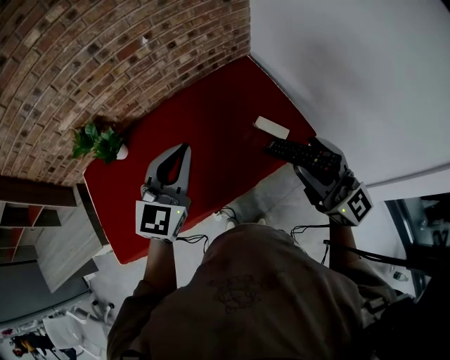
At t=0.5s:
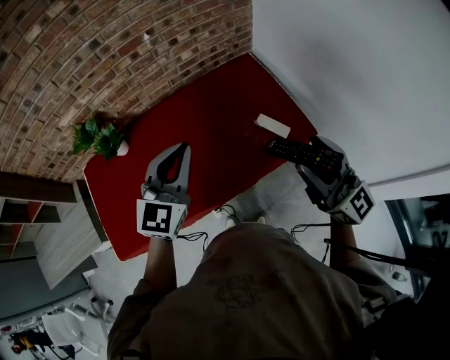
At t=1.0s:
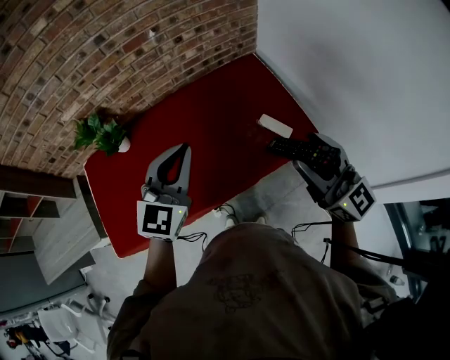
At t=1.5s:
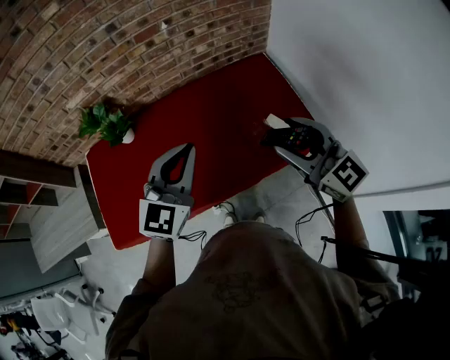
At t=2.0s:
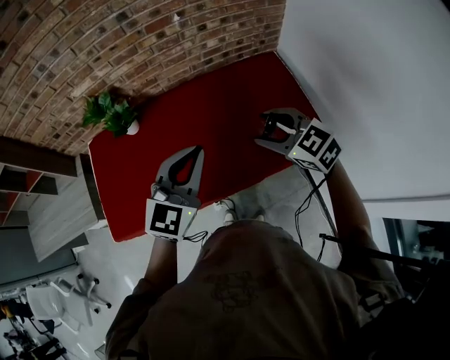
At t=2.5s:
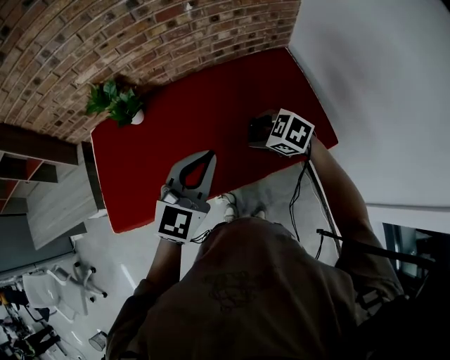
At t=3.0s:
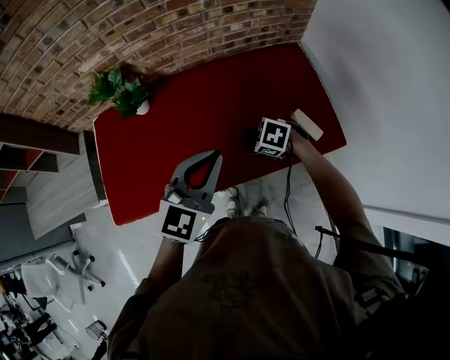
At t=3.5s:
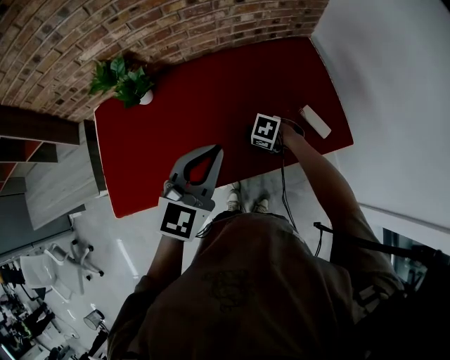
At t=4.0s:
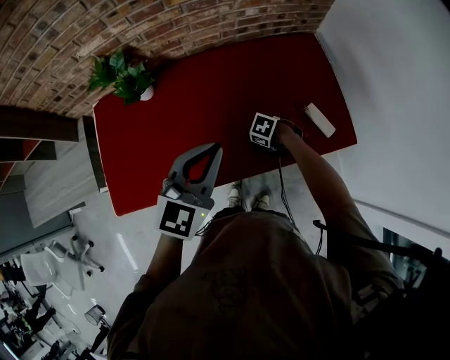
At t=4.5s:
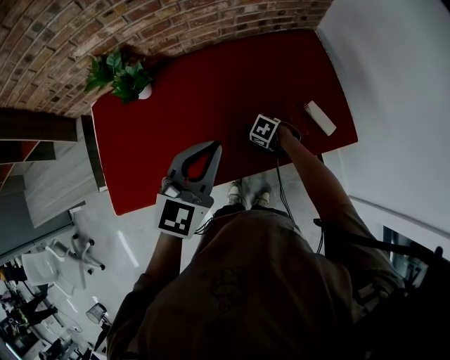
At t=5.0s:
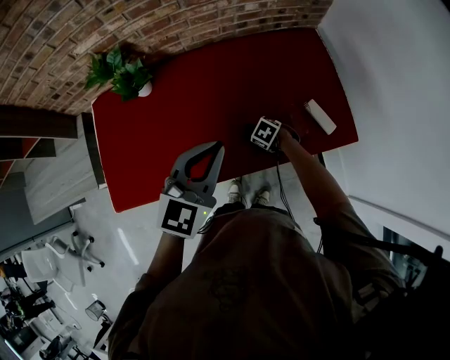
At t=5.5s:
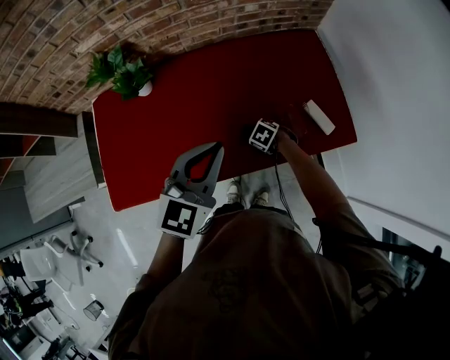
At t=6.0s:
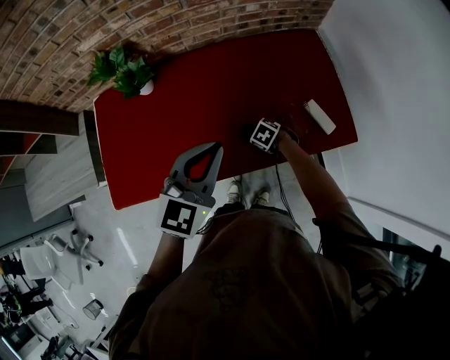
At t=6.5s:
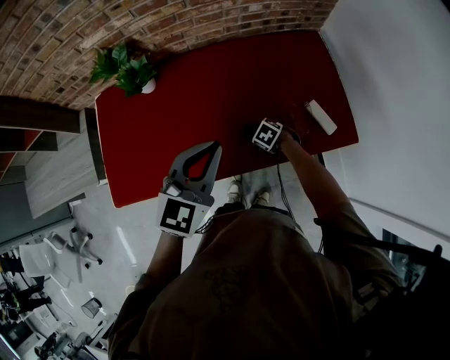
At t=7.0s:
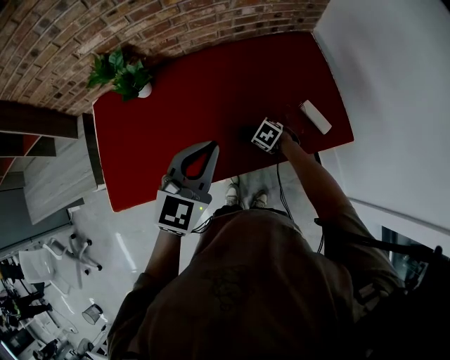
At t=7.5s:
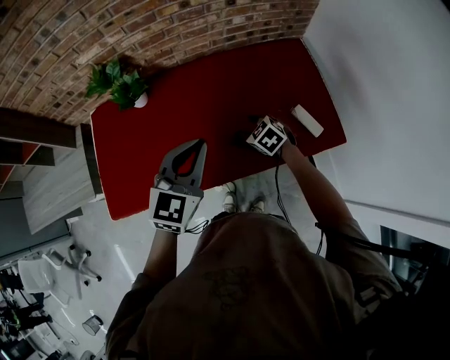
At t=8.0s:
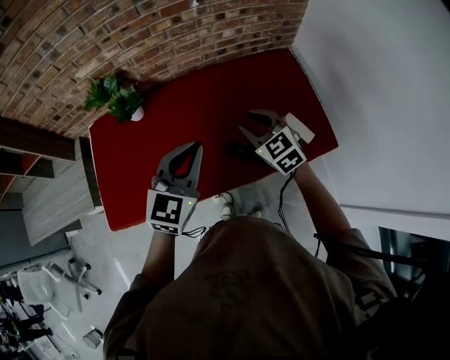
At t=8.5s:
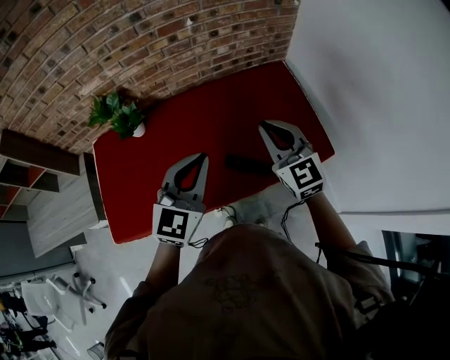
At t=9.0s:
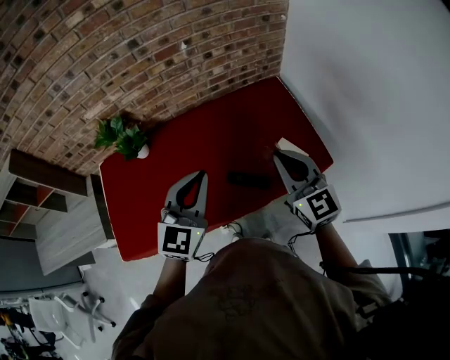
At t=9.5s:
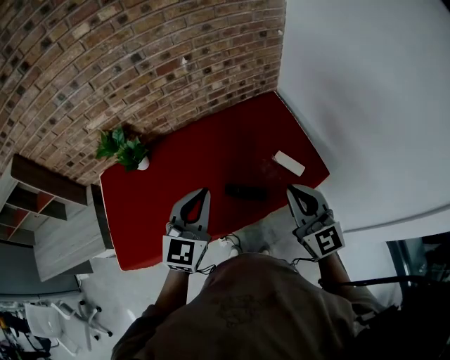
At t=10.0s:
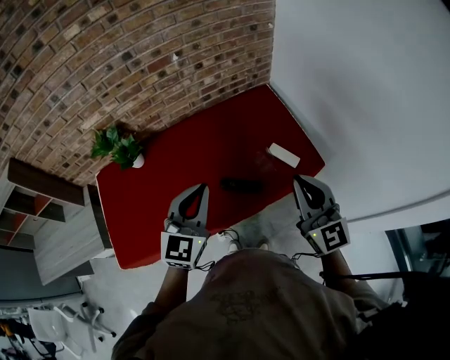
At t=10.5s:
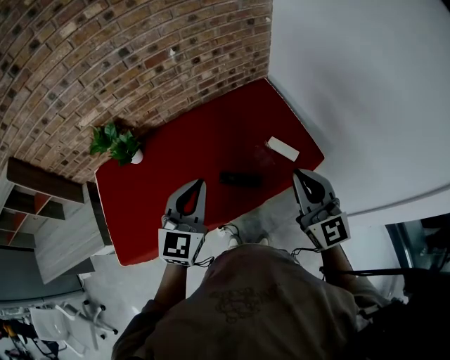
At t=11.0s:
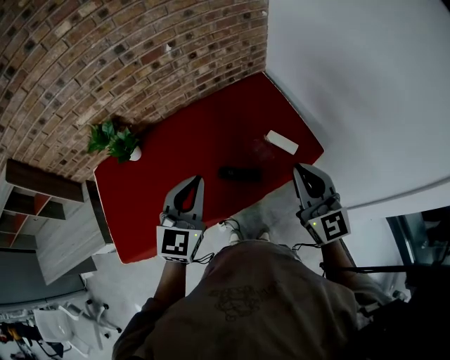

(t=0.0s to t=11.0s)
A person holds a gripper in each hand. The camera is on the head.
t=0.0s - t=2.0s: The right gripper shifts approximately 20 cm forward, downward and to the left, and points its fingers about 50 degrees further downward.
t=2.0s - t=3.5s: The left gripper changes place by approximately 5 cm. Meanwhile the right gripper travels downward by about 30 cm, and tilts its fingers roughly 40 degrees downward.
t=3.5s - t=5.5s: The right gripper goes about 10 cm downward.
t=5.5s - t=7.5s: The right gripper shifts approximately 15 cm upward, and turns by roughly 30 degrees.
t=7.5s - t=9.0s: The left gripper moves upward, about 5 cm, while the right gripper heads upward, covering roughly 30 cm, tips its fingers upward by some 50 degrees, and closes its fingers.
t=9.0s - t=11.0s: The right gripper travels backward and to the right by approximately 10 cm.

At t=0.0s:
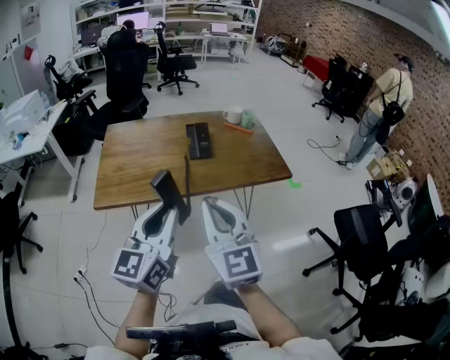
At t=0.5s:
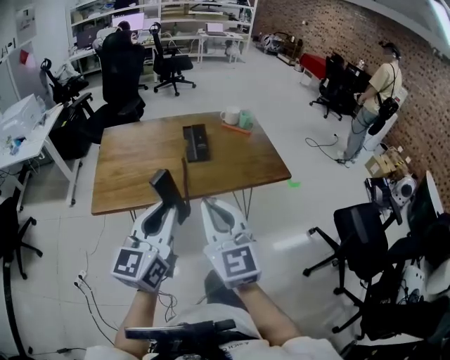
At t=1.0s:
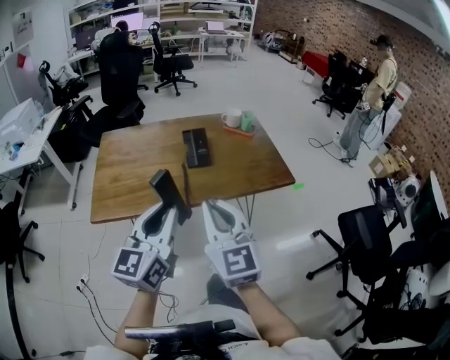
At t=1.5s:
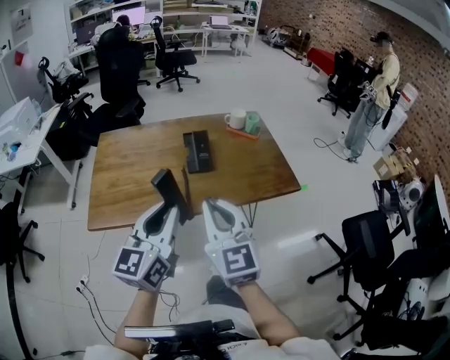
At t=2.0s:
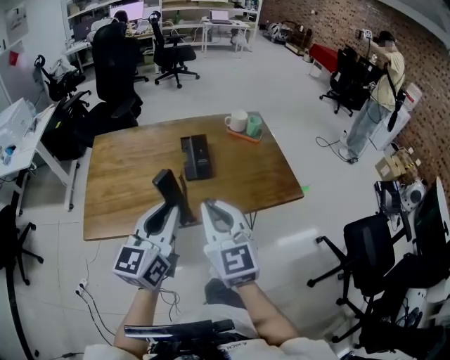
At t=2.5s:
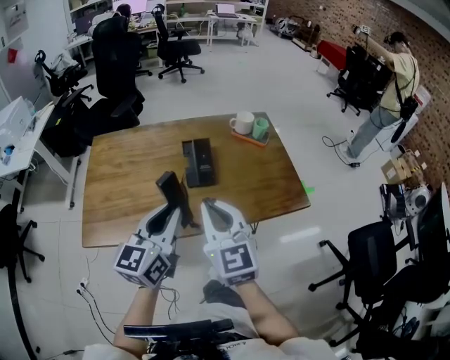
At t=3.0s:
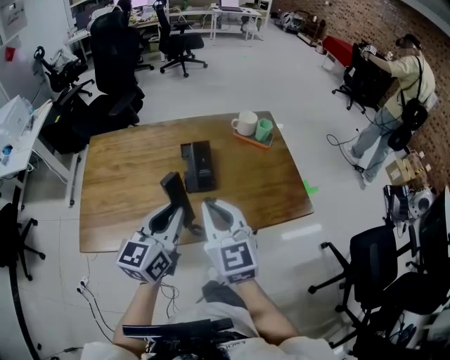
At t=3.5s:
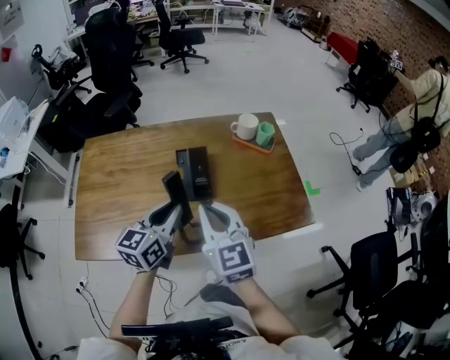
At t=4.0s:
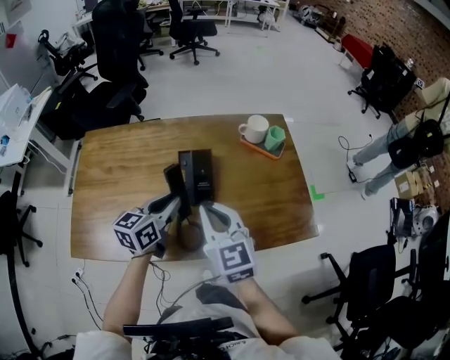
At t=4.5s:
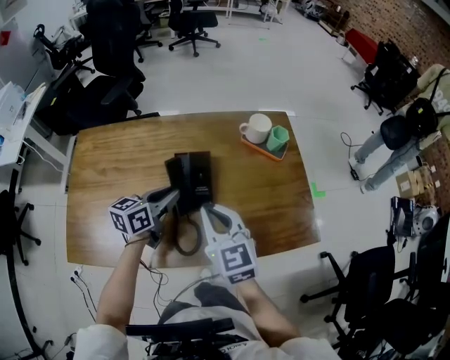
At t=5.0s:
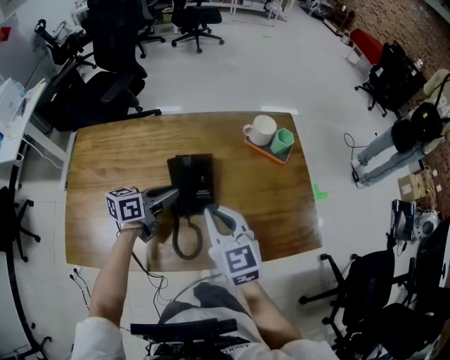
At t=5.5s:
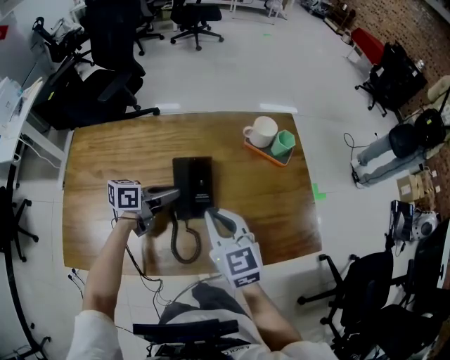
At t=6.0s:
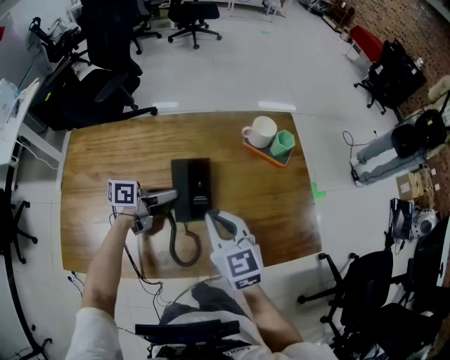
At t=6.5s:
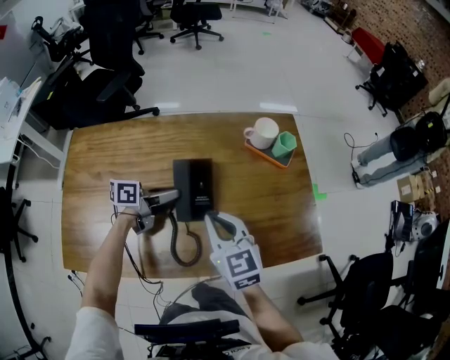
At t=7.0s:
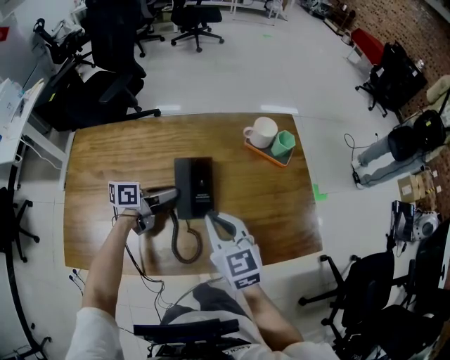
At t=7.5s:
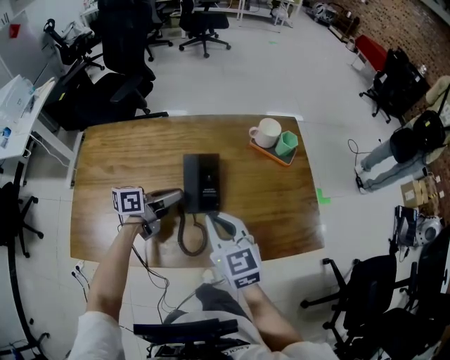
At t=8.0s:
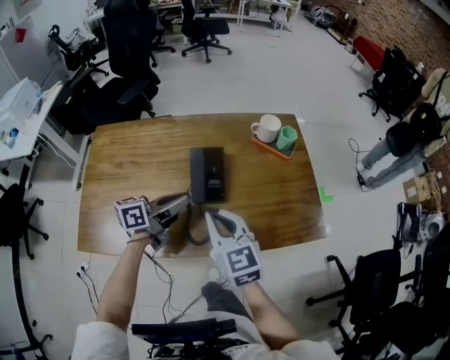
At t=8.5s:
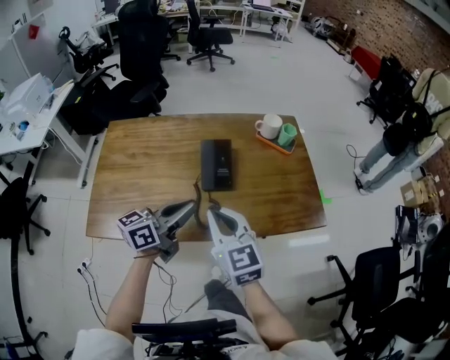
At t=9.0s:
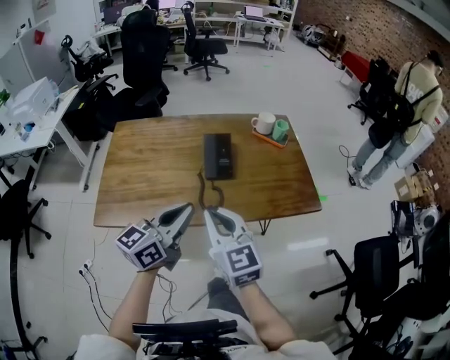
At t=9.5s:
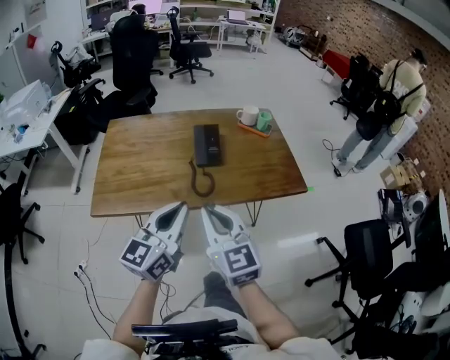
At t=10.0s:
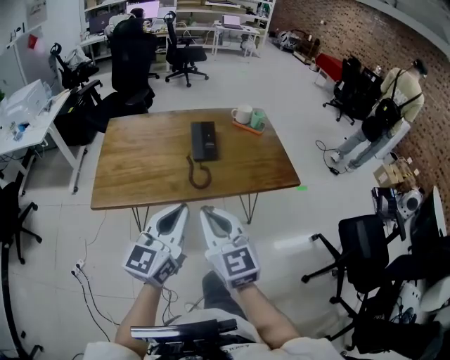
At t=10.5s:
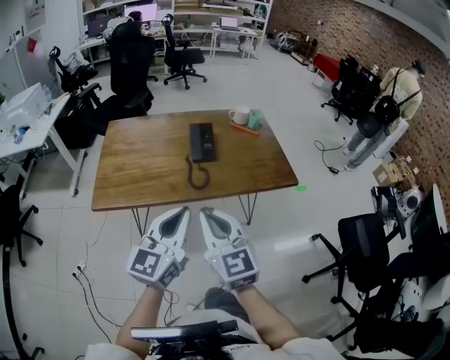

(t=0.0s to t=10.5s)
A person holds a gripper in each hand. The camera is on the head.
t=0.0s - t=2.0s: Both grippers travel together forward, some 20 cm.
t=2.0s - t=4.0s: Both grippers travel together forward and downward, about 25 cm. The left gripper changes its angle by some 20 degrees.
t=4.0s - t=6.5s: The right gripper moves downward and forward, some 10 cm, while the left gripper travels forward and downward by approximately 15 cm, and swivels roughly 40 degrees.
t=6.5s - t=8.5s: The left gripper shifts approximately 25 cm backward and upward, and turns by approximately 30 degrees. The right gripper shifts approximately 15 cm backward and upward.
t=8.5s - t=10.5s: Both grippers travel together backward, approximately 25 cm. The left gripper rotates roughly 40 degrees.

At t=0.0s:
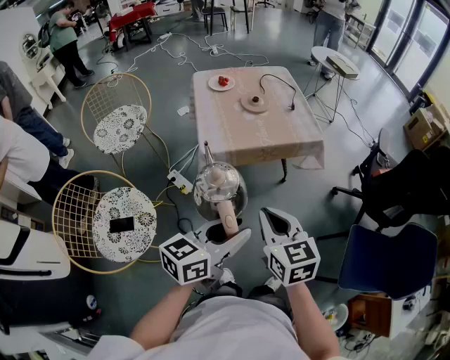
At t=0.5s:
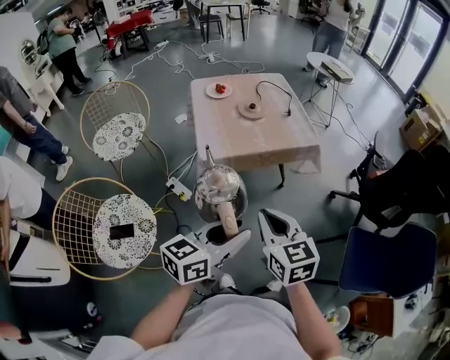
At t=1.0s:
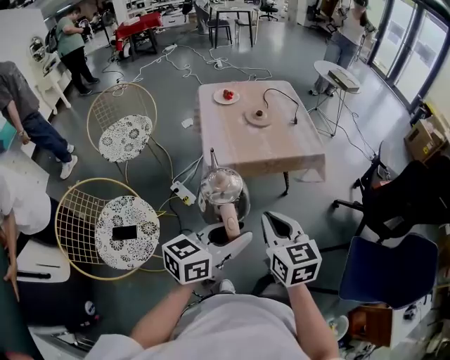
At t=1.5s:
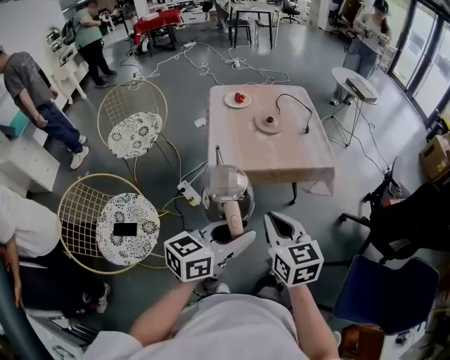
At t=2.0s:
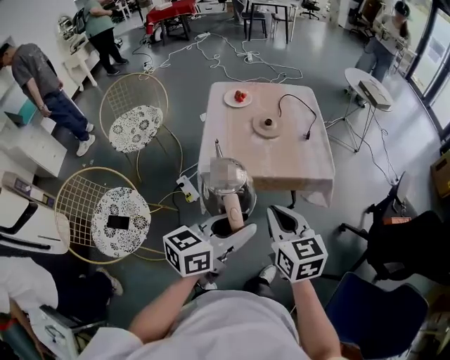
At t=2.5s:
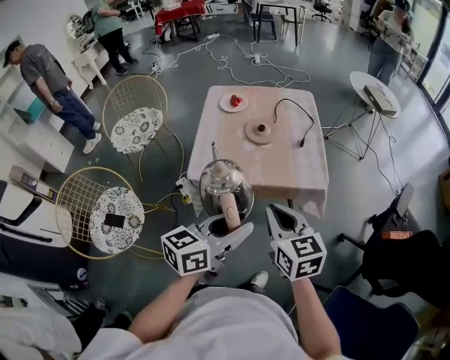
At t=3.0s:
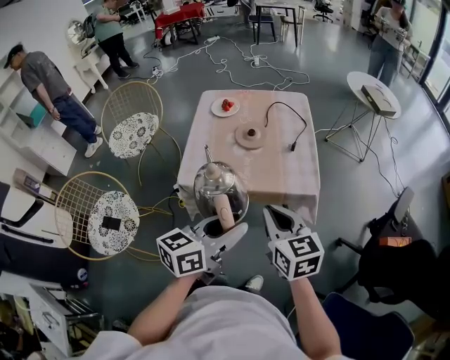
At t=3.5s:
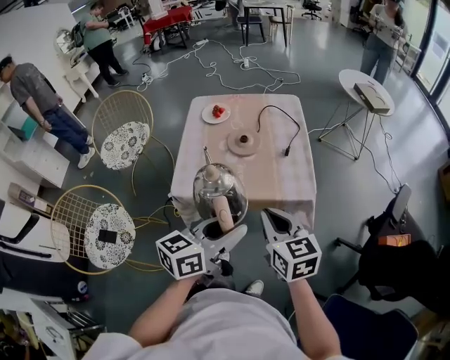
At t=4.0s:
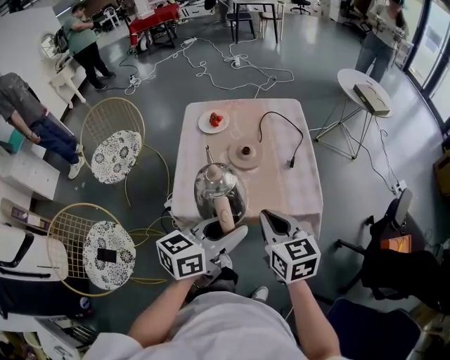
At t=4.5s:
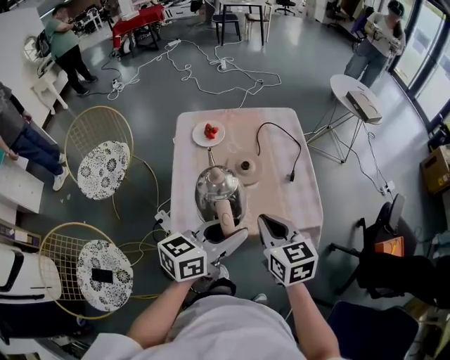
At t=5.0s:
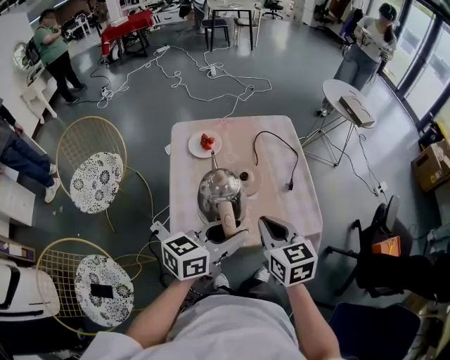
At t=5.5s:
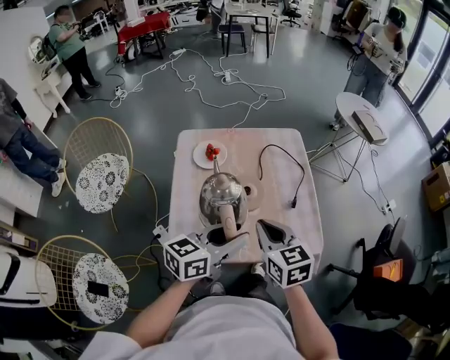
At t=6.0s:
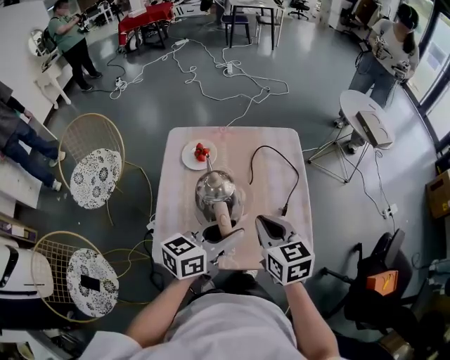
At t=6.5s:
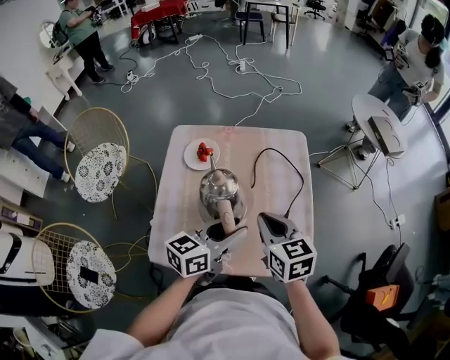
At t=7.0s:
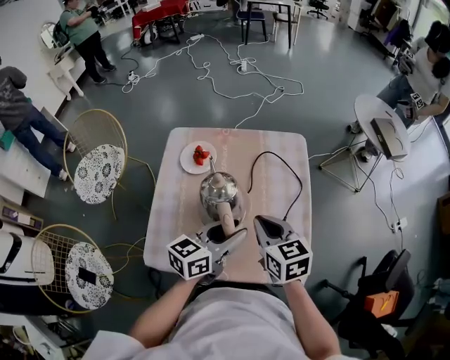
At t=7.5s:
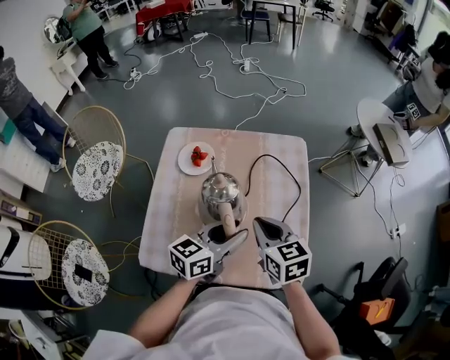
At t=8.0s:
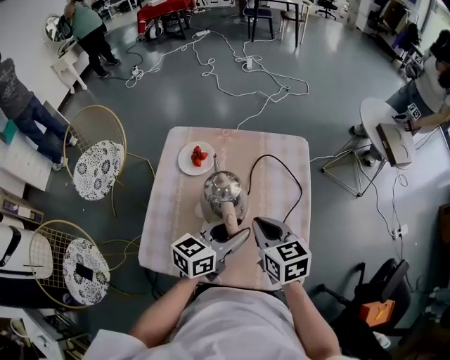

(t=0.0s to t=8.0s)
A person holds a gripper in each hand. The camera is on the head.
t=0.0s - t=2.0s: The grippers both shift forward by approximately 15 cm.
t=2.0s - t=4.0s: The two grippers go approximately 20 cm forward.
t=4.0s - t=6.0s: The grippers both shift forward by about 20 cm.
t=6.0s - t=8.0s: The two grippers go about 10 cm forward and downward.
